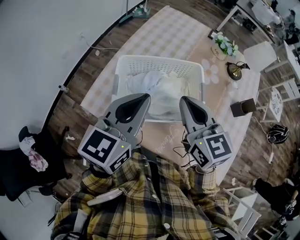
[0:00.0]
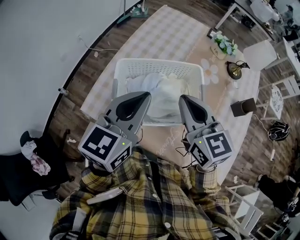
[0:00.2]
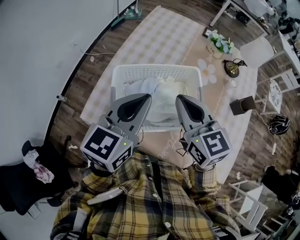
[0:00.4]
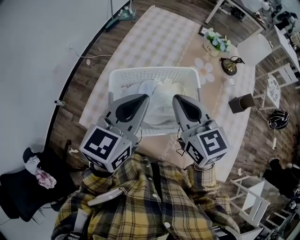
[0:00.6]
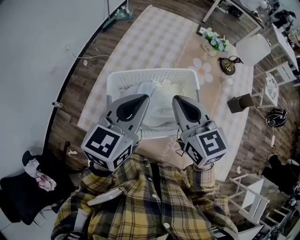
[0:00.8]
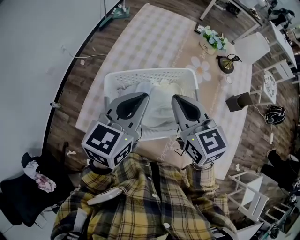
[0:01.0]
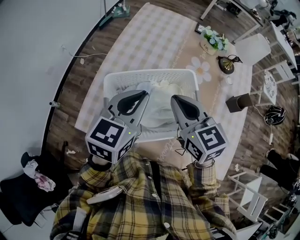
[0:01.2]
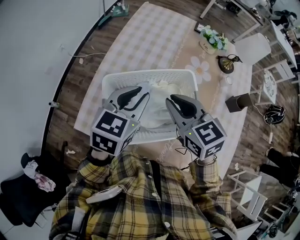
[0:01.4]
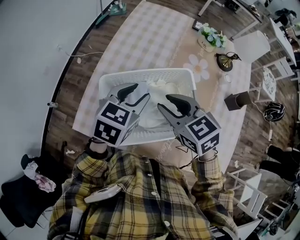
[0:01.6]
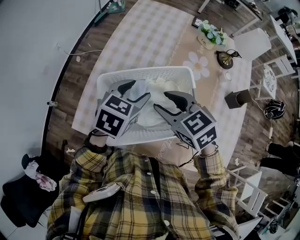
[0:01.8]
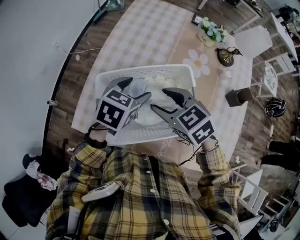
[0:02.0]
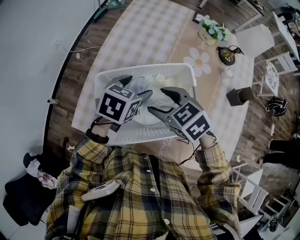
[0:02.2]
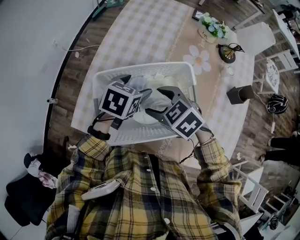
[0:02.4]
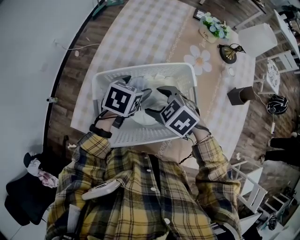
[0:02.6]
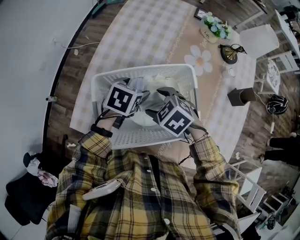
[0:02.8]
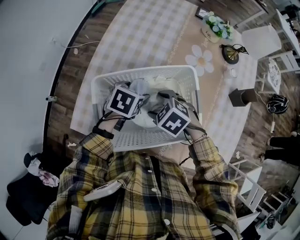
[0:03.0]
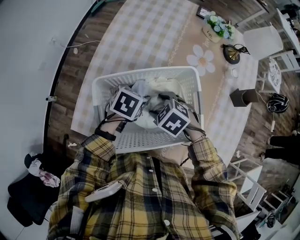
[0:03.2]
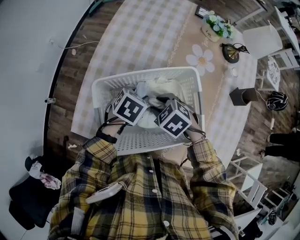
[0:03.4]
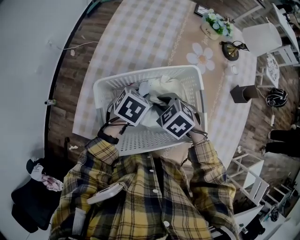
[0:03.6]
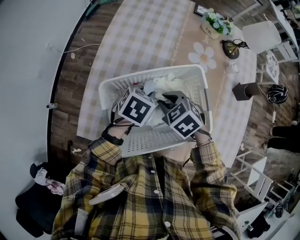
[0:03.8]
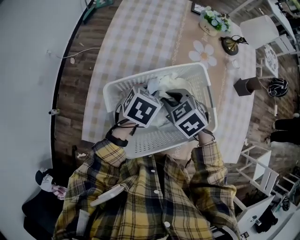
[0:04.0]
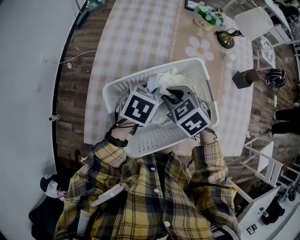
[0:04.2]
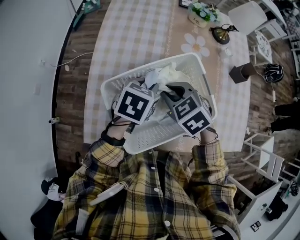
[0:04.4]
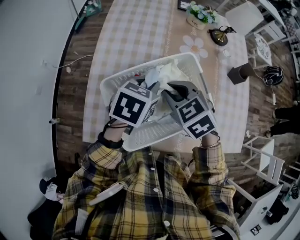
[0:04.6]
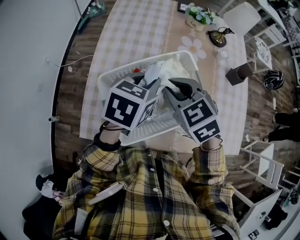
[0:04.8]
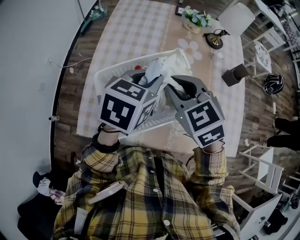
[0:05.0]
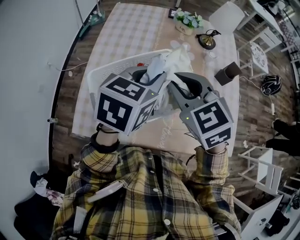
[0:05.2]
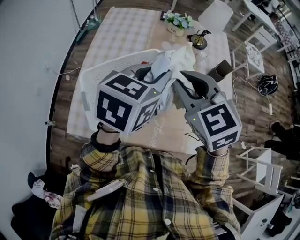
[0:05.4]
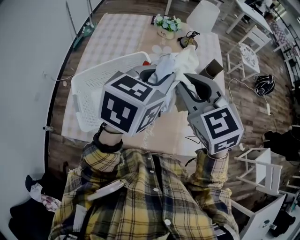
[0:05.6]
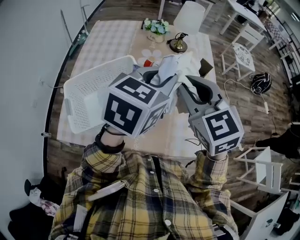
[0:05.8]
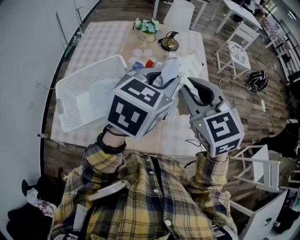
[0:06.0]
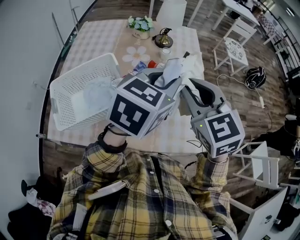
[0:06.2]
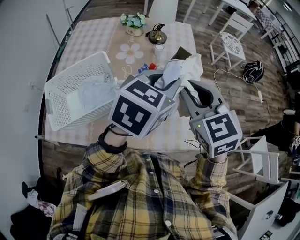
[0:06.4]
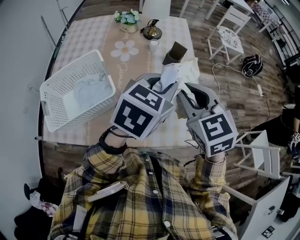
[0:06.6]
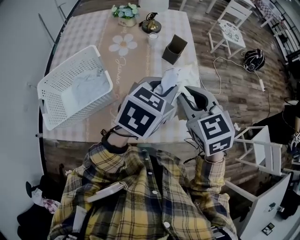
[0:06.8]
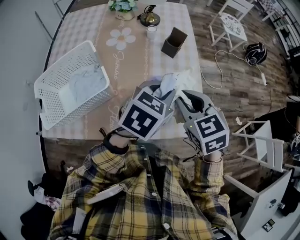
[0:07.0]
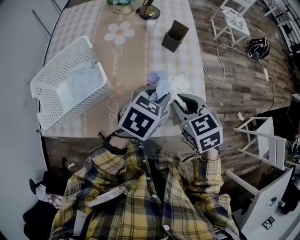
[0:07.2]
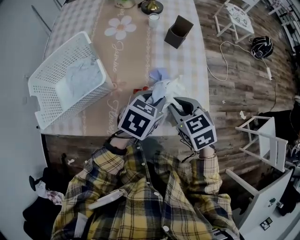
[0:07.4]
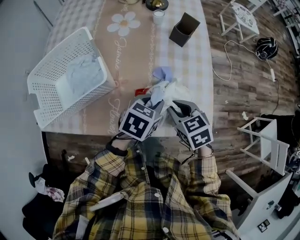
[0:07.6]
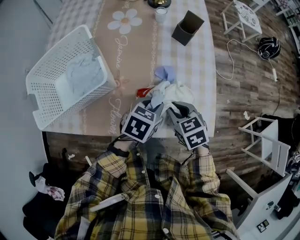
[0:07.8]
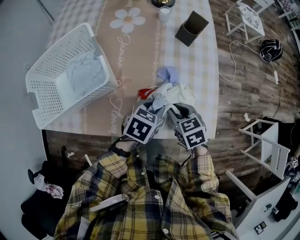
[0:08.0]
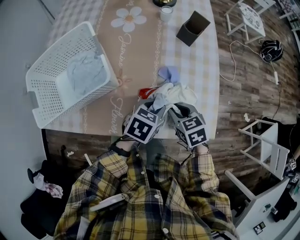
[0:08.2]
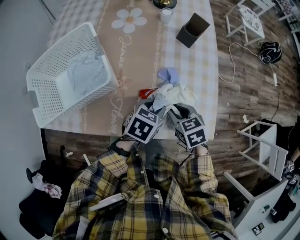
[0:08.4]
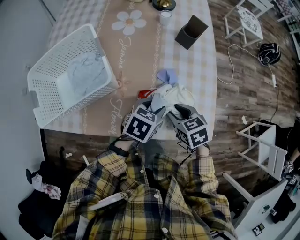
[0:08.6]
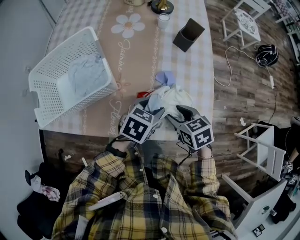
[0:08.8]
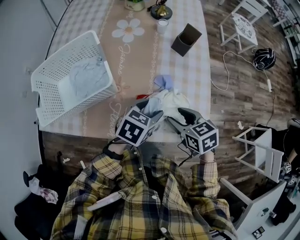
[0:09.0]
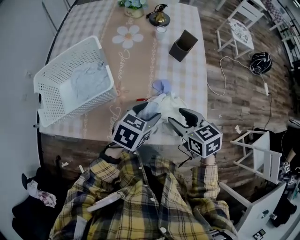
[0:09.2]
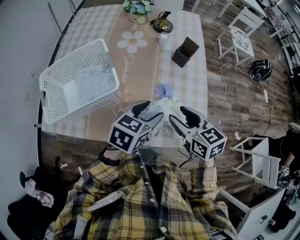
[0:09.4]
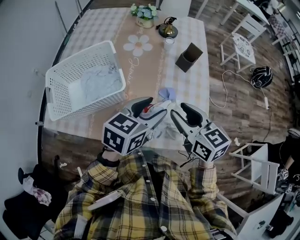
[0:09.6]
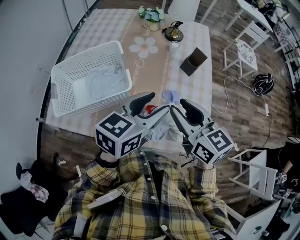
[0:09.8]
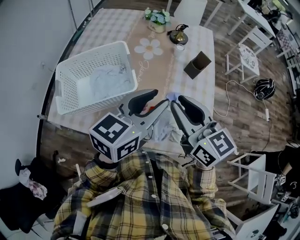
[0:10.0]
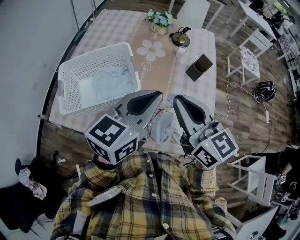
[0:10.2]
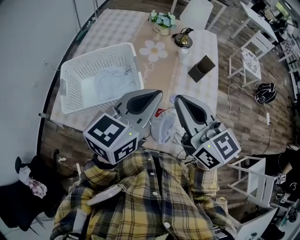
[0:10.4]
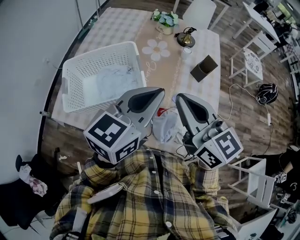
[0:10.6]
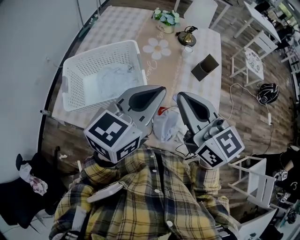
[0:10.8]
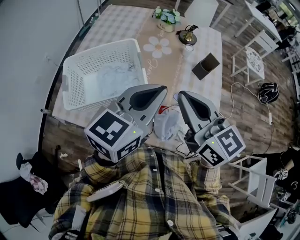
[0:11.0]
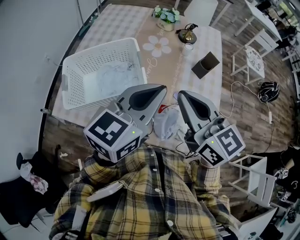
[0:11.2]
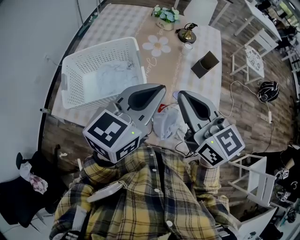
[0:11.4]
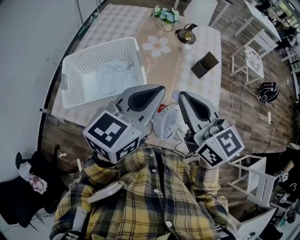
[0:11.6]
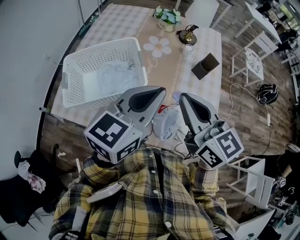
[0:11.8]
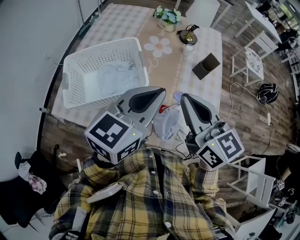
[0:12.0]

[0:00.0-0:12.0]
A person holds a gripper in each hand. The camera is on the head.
0:00.0 to 0:01.6: The left gripper is displaced forward and downward by some 15 cm, changes its angle by some 30 degrees, and opens its fingers. Meanwhile the right gripper goes some 10 cm downward and forward, rotates roughly 20 degrees, and opens.
0:01.6 to 0:03.0: The right gripper travels downward by some 15 cm, changes its angle by approximately 40 degrees, and opens up. Meanwhile the left gripper travels downward and forward by some 15 cm, rotates approximately 30 degrees, and opens up.
0:03.0 to 0:04.4: The left gripper heads upward and backward, covering roughly 10 cm, and closes up. Meanwhile the right gripper is displaced upward by approximately 5 cm, changes its angle by roughly 30 degrees, and closes.
0:04.4 to 0:06.0: The grippers both shift to the right and upward by roughly 40 cm. The left gripper changes its angle by some 30 degrees; the right gripper tilts its fingers some 30 degrees upward.
0:06.0 to 0:07.6: The grippers both shift downward by about 30 cm. The left gripper turns by roughly 30 degrees. Meanwhile the right gripper rotates approximately 40 degrees.
0:07.6 to 0:09.0: The right gripper opens, while the left gripper opens.
0:09.0 to 0:10.4: The right gripper heads upward and to the left, covering some 30 cm, tilts its fingers roughly 40 degrees upward, and closes. The left gripper goes about 25 cm upward, angles its fingers upward, by roughly 40 degrees, and closes.
0:10.4 to 0:12.0: Neither gripper changes place.

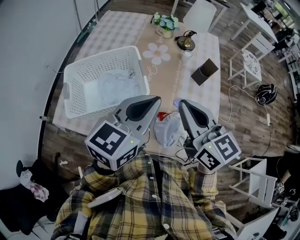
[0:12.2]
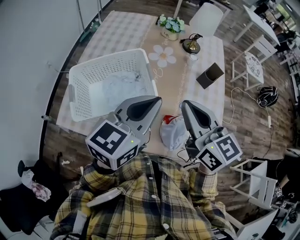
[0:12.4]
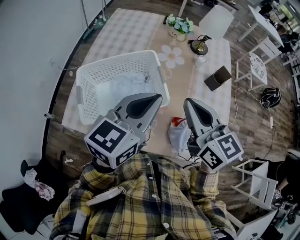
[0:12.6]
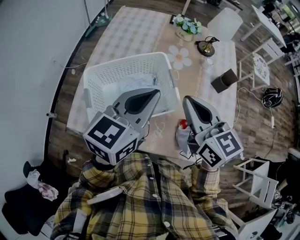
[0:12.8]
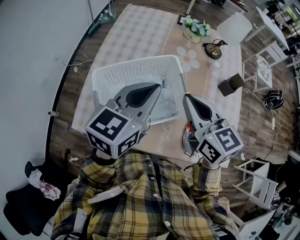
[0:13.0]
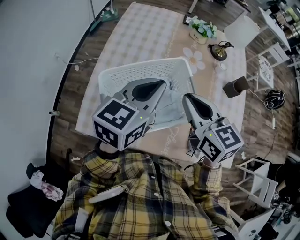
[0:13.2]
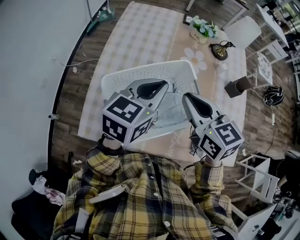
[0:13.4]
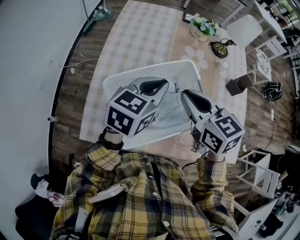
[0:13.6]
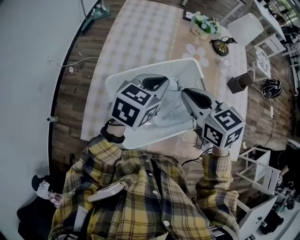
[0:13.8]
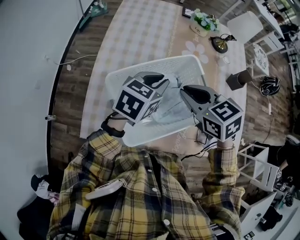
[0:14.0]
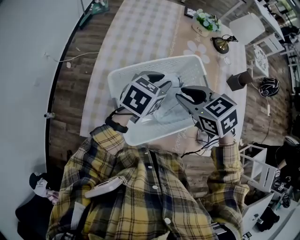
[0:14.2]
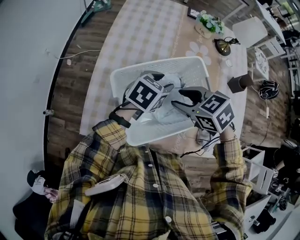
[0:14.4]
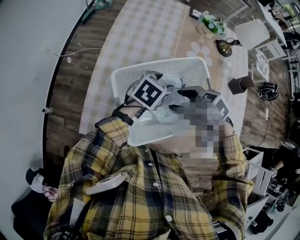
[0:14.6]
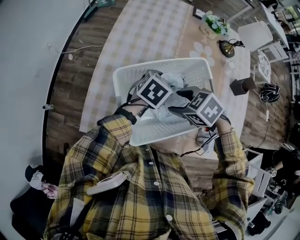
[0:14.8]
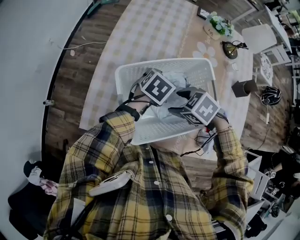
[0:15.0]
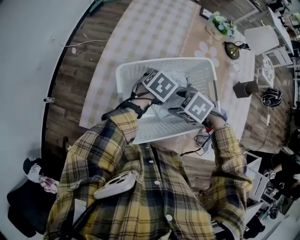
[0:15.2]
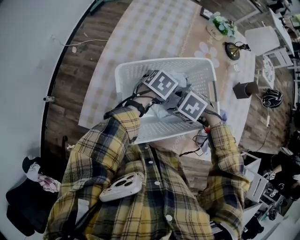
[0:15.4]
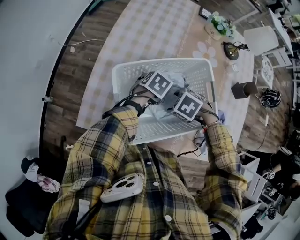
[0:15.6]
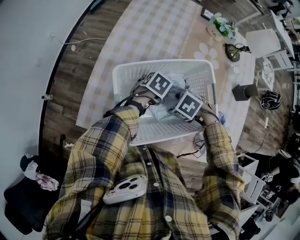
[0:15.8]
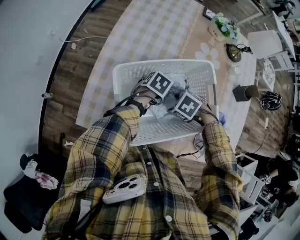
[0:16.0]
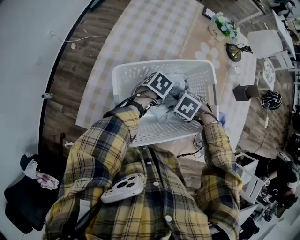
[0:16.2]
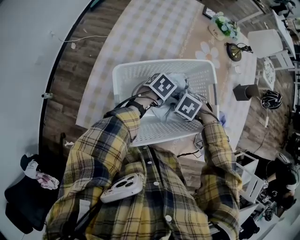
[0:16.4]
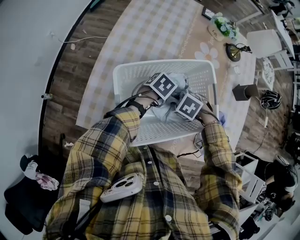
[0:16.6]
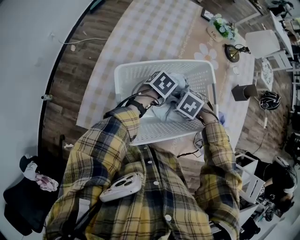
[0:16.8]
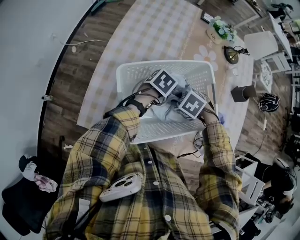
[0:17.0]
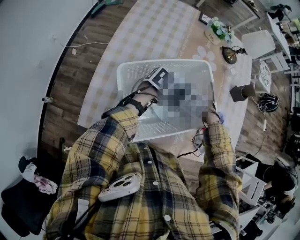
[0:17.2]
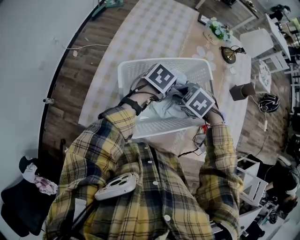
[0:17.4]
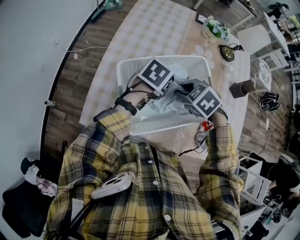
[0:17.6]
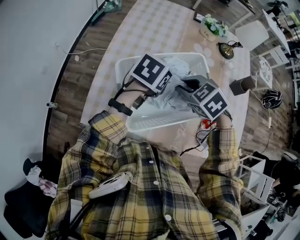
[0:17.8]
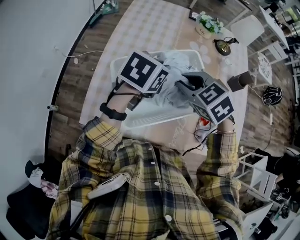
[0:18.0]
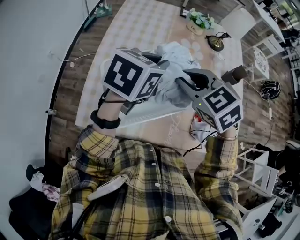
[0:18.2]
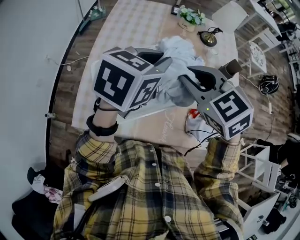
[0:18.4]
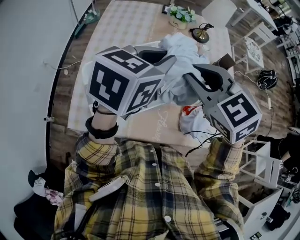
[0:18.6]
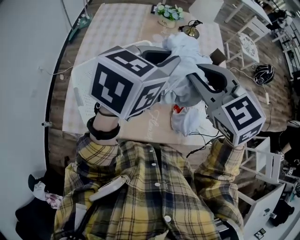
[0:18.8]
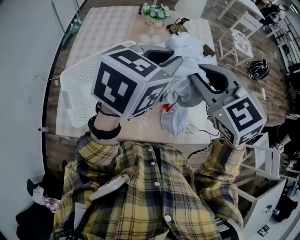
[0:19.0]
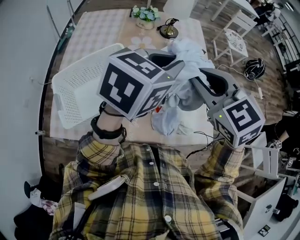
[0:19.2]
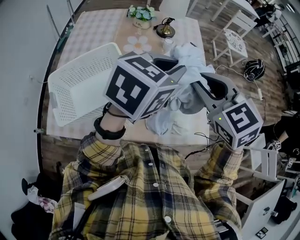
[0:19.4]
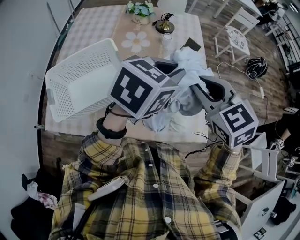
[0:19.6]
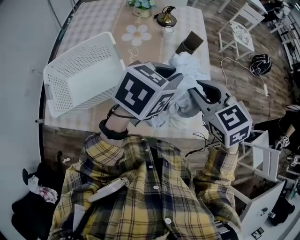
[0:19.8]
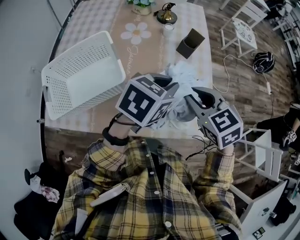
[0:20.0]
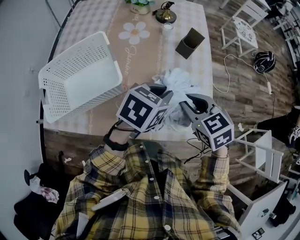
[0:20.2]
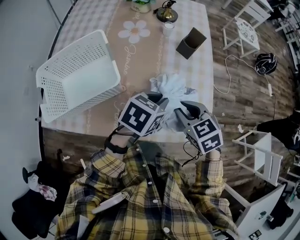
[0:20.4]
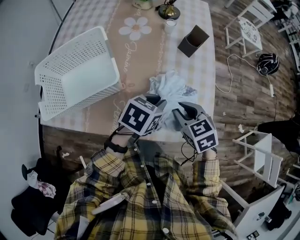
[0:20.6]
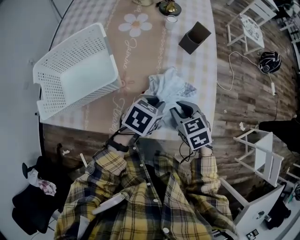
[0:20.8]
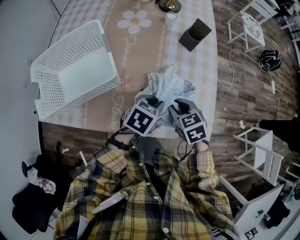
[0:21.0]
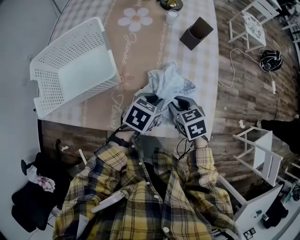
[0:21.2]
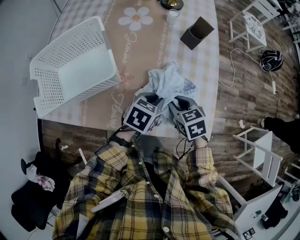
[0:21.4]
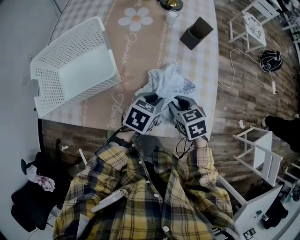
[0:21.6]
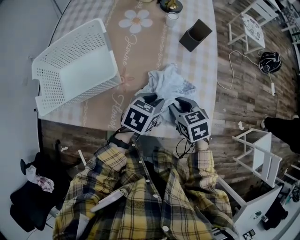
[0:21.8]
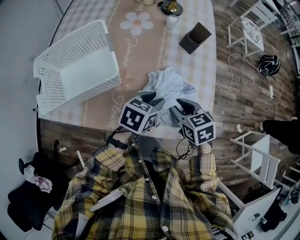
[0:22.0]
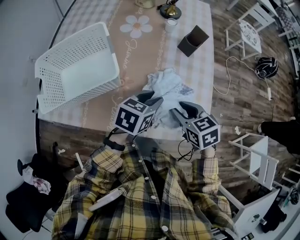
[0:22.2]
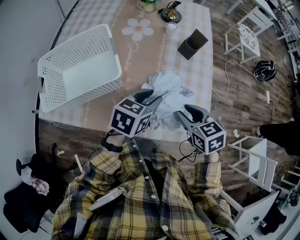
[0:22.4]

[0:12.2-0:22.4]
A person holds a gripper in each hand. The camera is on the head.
0:12.2 to 0:13.6: The grippers both shift to the left and forward by about 25 cm.
0:13.6 to 0:15.2: The grippers both shift downward by about 20 cm. The left gripper tilts its fingers approximately 30 degrees downward, and opens up; the right gripper angles its fingers downward, by about 50 degrees, and opens.
0:15.2 to 0:16.6: Both grippers travel together downward, roughly 5 cm. The left gripper closes. The right gripper closes.
0:16.6 to 0:18.0: The two grippers go some 20 cm upward. The left gripper changes its angle by some 30 degrees. The right gripper changes its angle by roughly 40 degrees.
0:18.0 to 0:19.4: Both grippers travel together to the right, roughly 35 cm. The left gripper turns by some 20 degrees; the right gripper changes its angle by roughly 30 degrees.
0:19.4 to 0:21.0: The two grippers go about 30 cm downward. The right gripper swivels about 30 degrees. Meanwhile the left gripper turns by approximately 30 degrees.
0:21.0 to 0:22.4: Both grippers travel together upward, some 10 cm.

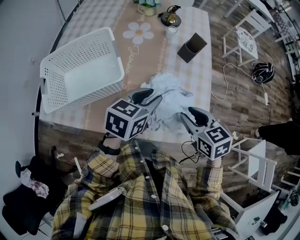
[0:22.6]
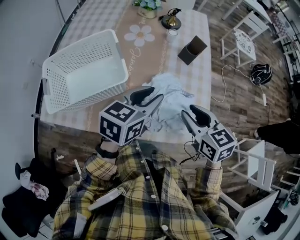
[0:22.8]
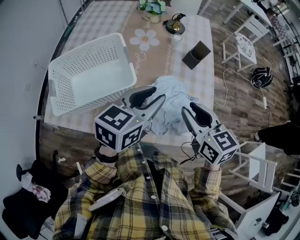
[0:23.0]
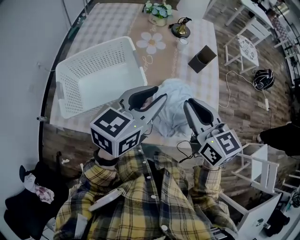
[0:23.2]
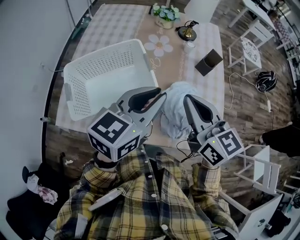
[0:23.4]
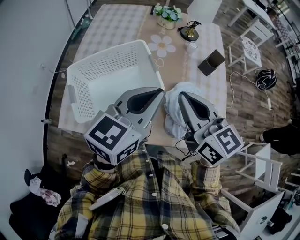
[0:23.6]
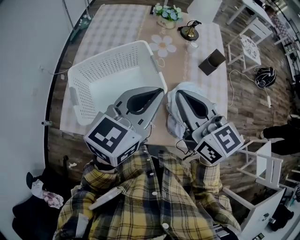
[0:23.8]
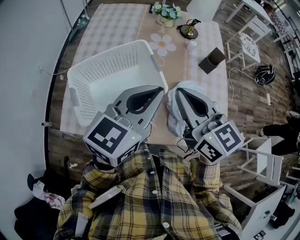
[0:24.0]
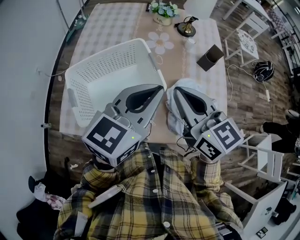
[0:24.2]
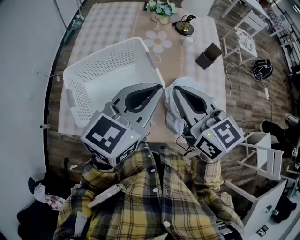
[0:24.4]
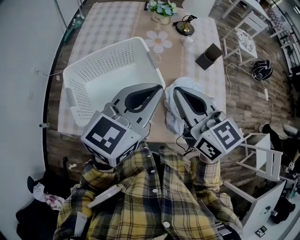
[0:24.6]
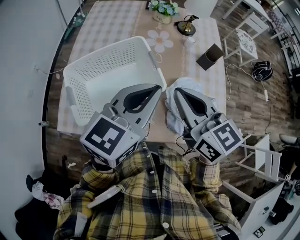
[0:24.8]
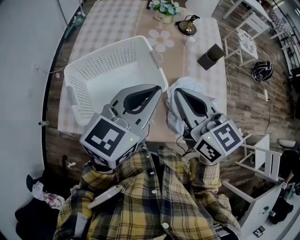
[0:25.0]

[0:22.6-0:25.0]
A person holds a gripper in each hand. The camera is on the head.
0:22.6 to 0:23.8: The right gripper moves to the left and upward, roughly 30 cm, tips its fingers upward by about 30 degrees, and closes its fingers. The left gripper moves upward and to the left, some 25 cm, changes its angle by approximately 20 degrees, and closes up.
0:23.8 to 0:25.0: The grippers make only small movements.
